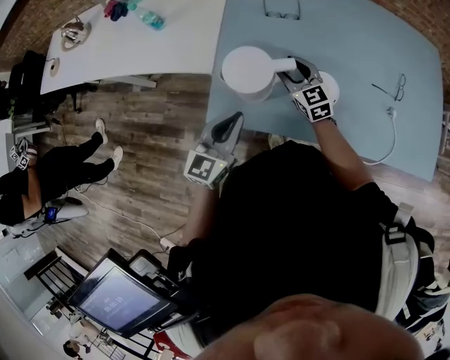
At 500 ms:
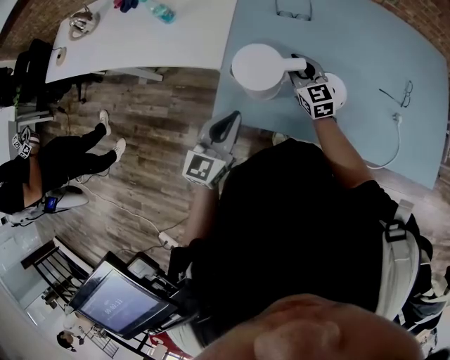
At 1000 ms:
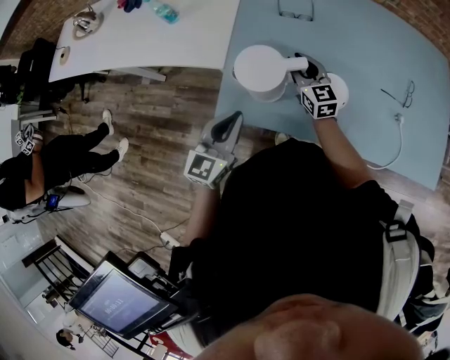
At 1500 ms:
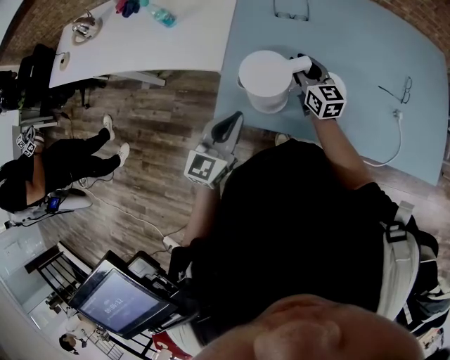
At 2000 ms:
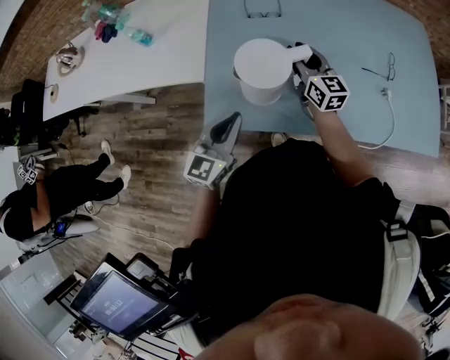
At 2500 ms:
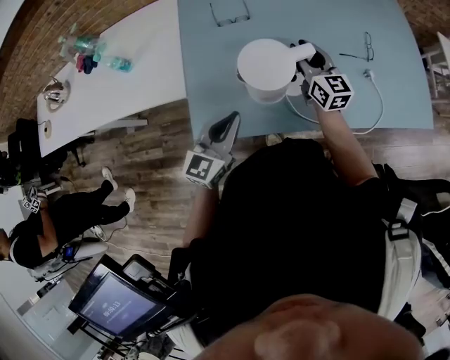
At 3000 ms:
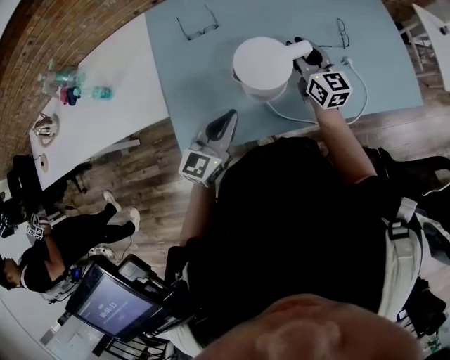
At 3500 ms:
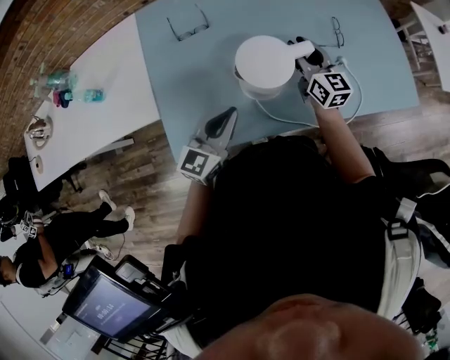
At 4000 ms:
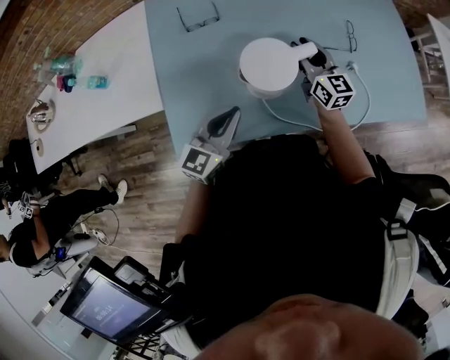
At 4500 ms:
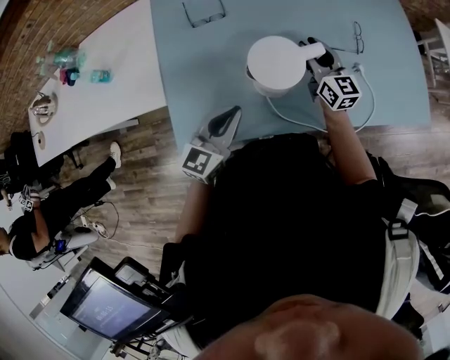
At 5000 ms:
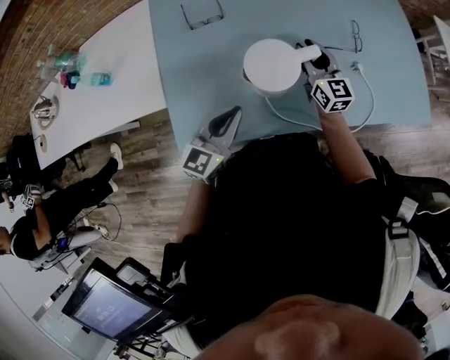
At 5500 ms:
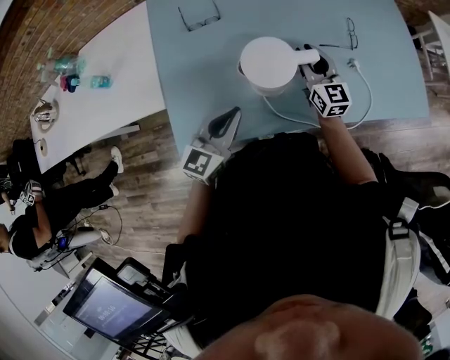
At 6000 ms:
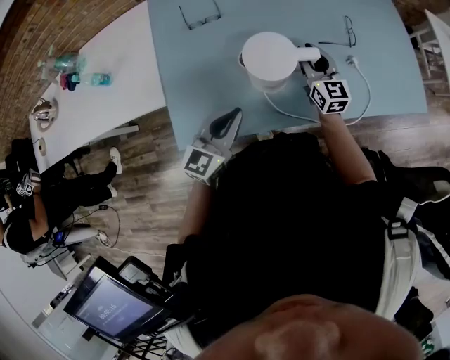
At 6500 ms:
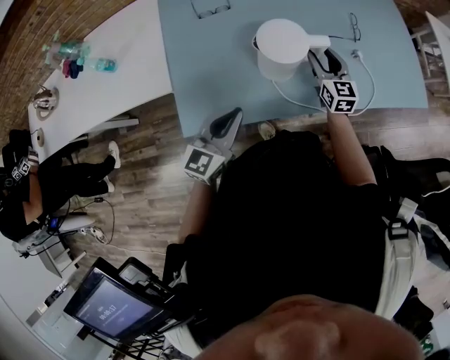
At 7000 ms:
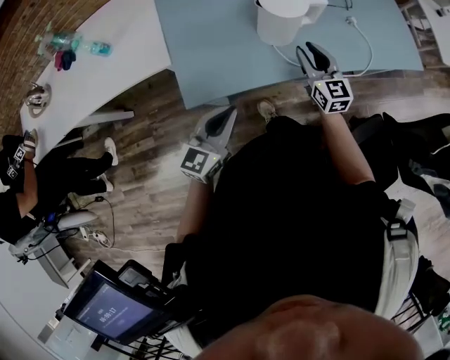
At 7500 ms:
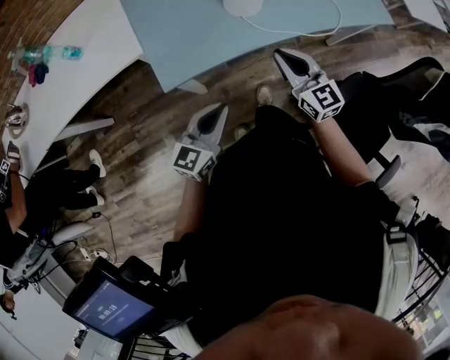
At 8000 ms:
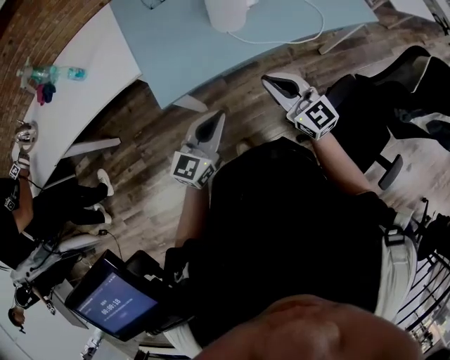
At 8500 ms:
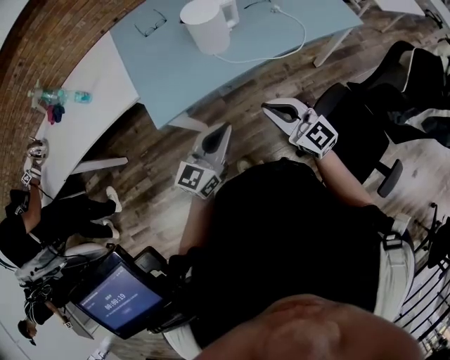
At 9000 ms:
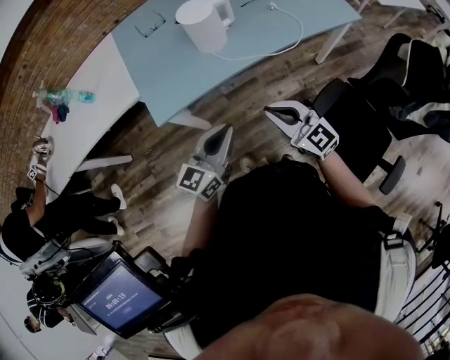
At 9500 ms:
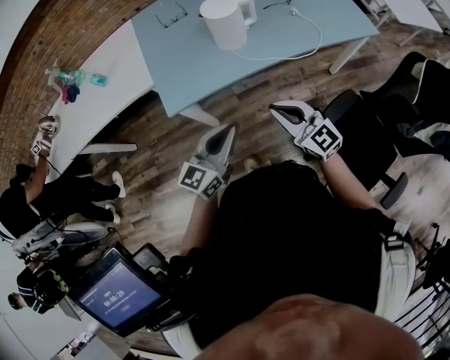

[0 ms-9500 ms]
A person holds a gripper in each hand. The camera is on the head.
0 ms to 2000 ms: The right gripper moves upward and to the right, approximately 10 cm, and swivels some 30 degrees.
2000 ms to 4000 ms: The left gripper travels to the right and forward by some 15 cm, while the right gripper heads to the right, covering about 20 cm.
4000 ms to 5500 ms: The grippers move only a little.
5500 ms to 7500 ms: Both grippers travel together backward, approximately 30 cm. The right gripper closes up.
7500 ms to 9500 ms: The right gripper moves backward, about 15 cm; the left gripper moves to the right and upward, roughly 15 cm.

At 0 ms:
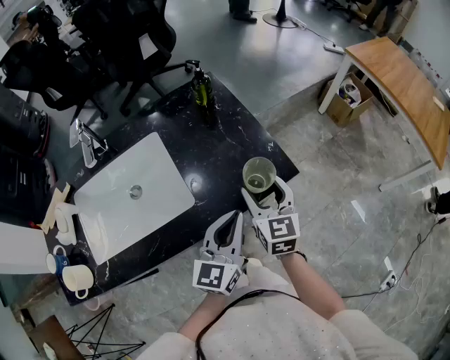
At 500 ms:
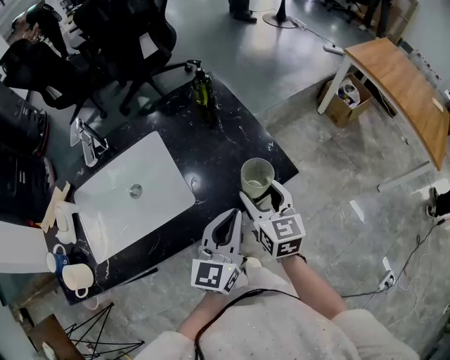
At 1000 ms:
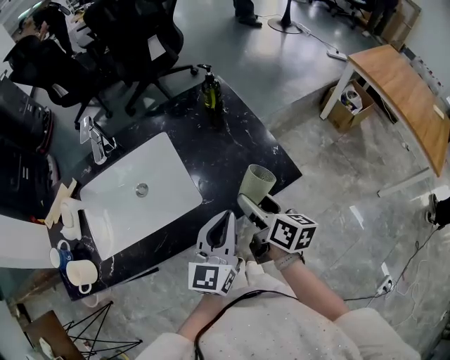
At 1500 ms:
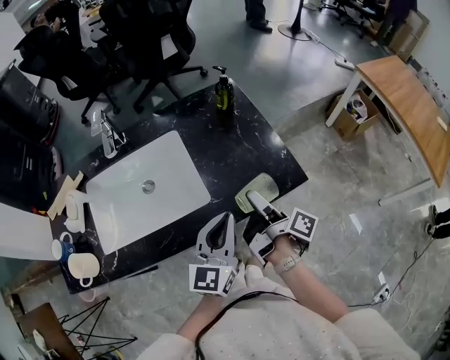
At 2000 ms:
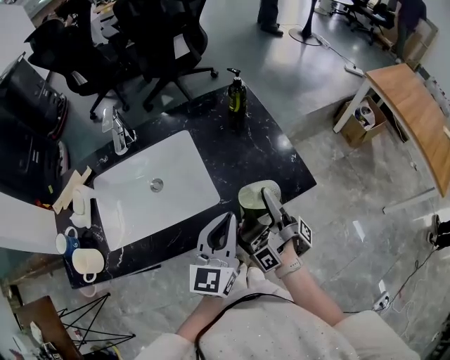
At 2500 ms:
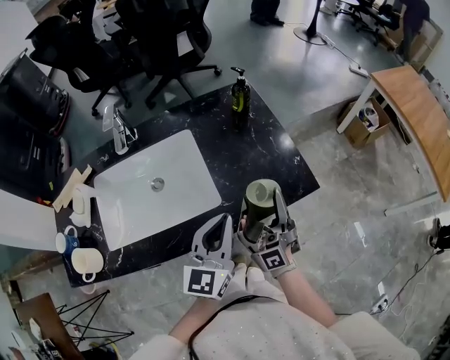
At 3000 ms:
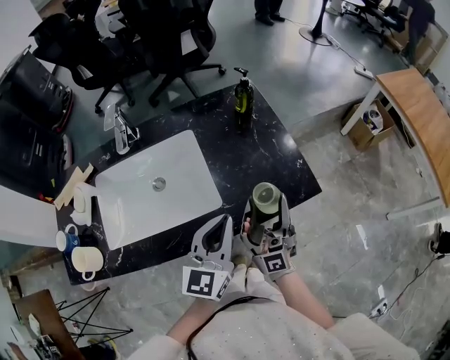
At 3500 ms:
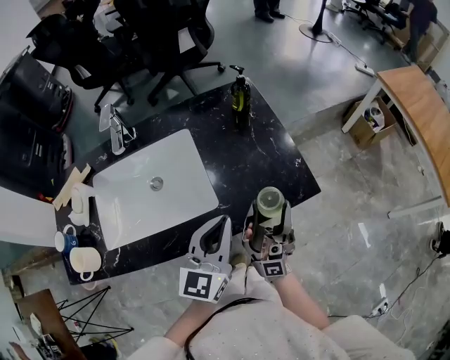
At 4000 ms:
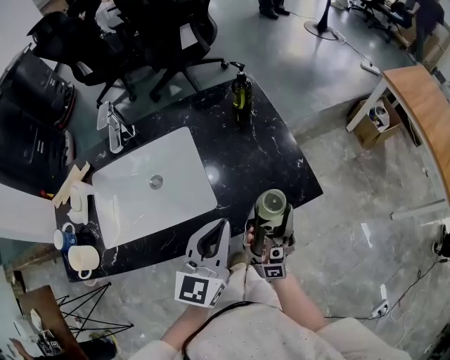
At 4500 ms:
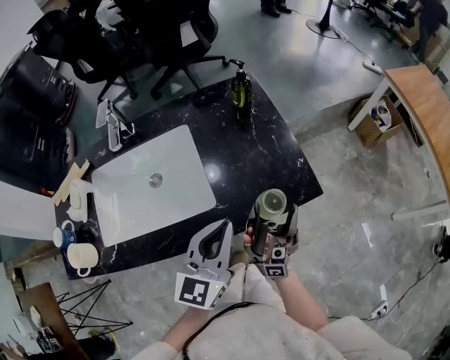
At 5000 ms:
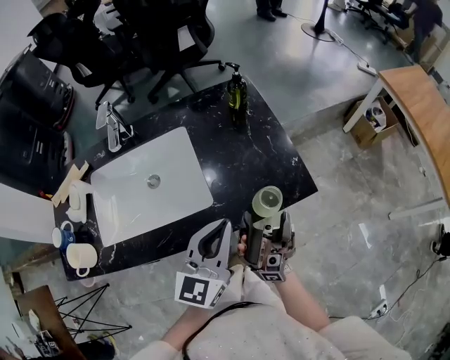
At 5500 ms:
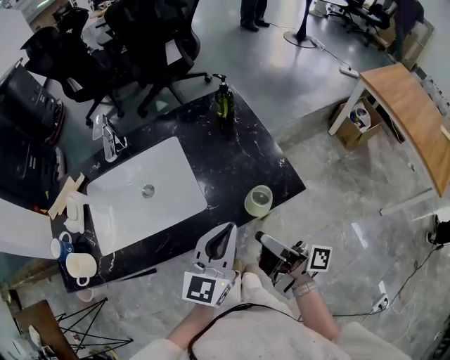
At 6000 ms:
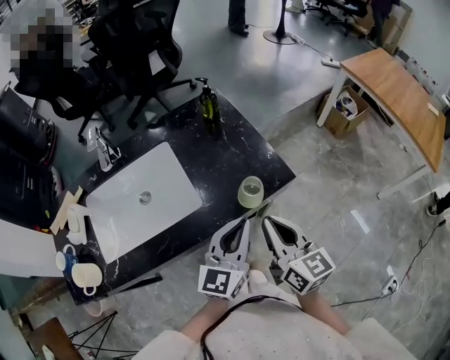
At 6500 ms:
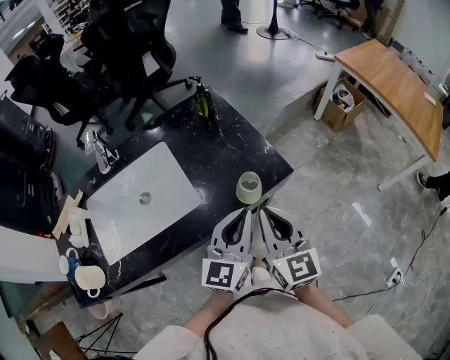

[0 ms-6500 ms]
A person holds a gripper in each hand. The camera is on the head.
0 ms to 2000 ms: The left gripper changes place by roughly 10 cm.
4500 ms to 6500 ms: The left gripper changes place by some 10 cm.

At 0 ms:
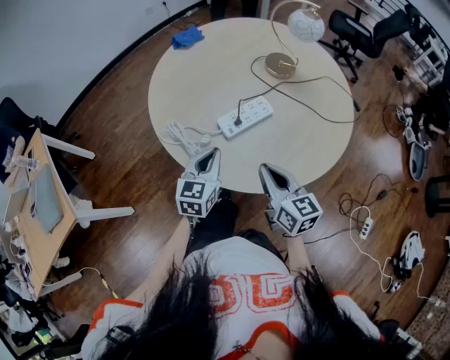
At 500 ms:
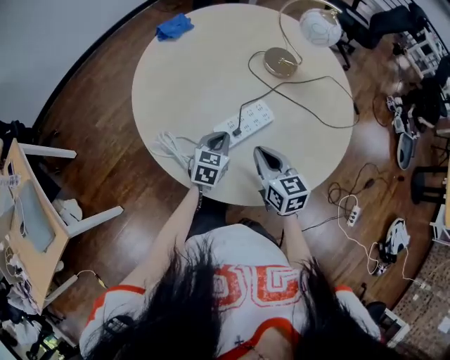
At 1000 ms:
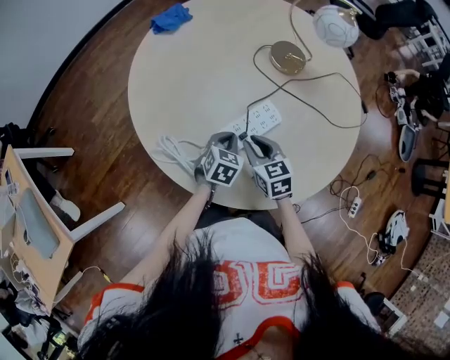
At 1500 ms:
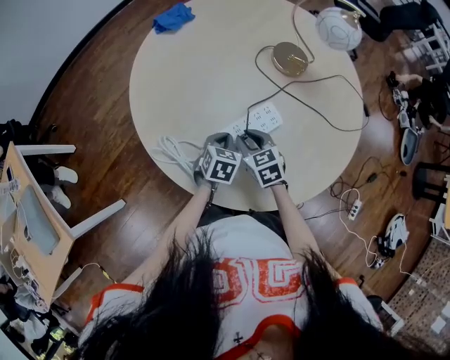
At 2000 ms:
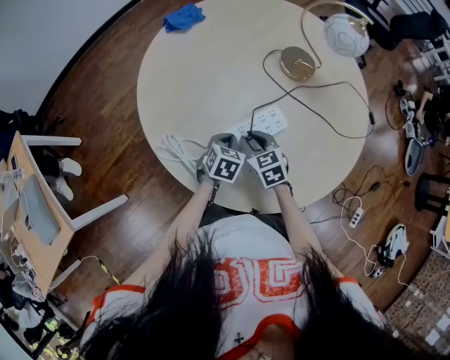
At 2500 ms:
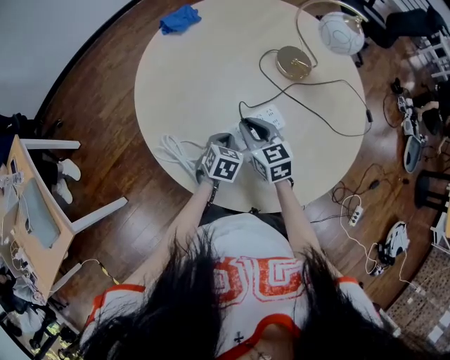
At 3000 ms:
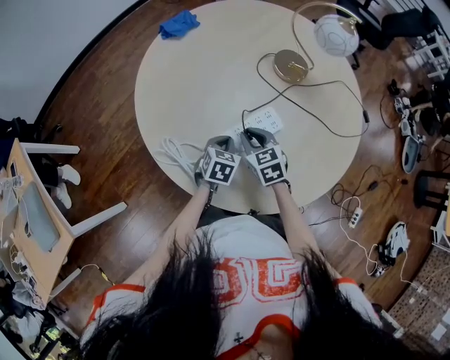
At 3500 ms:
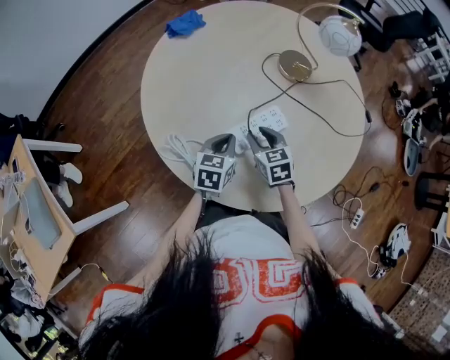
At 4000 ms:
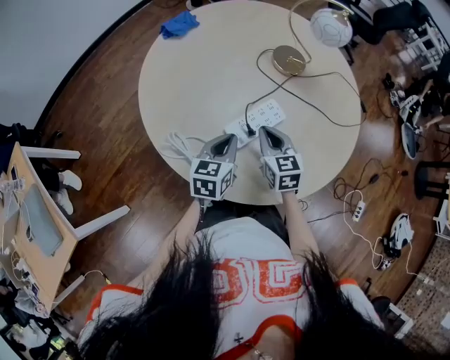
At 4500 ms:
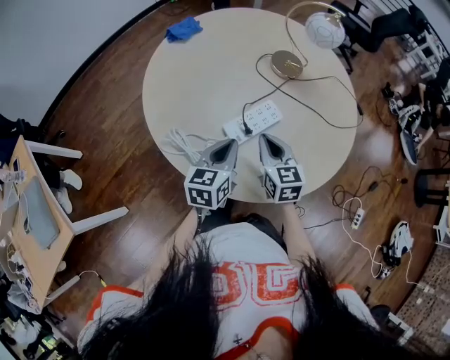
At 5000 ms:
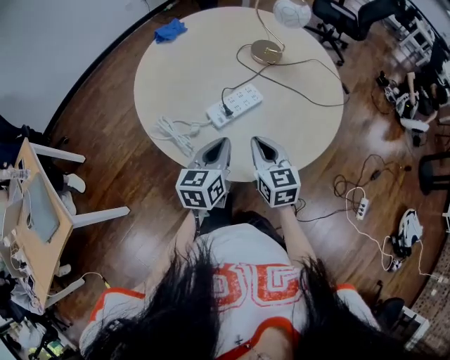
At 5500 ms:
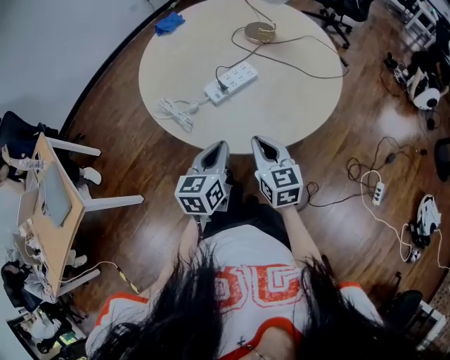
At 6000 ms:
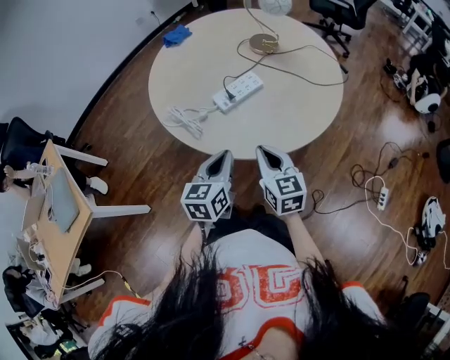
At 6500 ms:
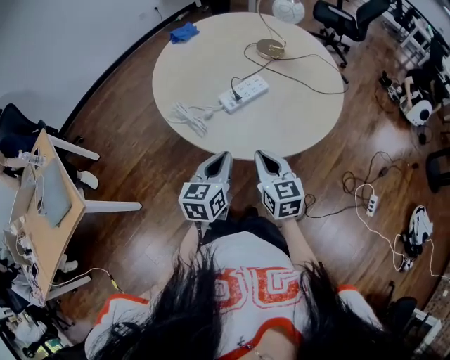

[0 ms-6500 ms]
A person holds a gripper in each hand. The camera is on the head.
0 ms to 2000 ms: The left gripper moves downward and forward, approximately 20 cm, and angles its fingers downward, by some 30 degrees; the right gripper moves forward and downward, about 25 cm, and changes its angle by approximately 30 degrees.
2000 ms to 4500 ms: The right gripper moves up and down over about 10 cm, changing direction 2 times, and rotates some 30 degrees, while the left gripper heads upward and backward, covering some 15 cm, and points its fingers roughly 30 degrees further upward.
4500 ms to 6500 ms: The two grippers go roughly 20 cm backward.

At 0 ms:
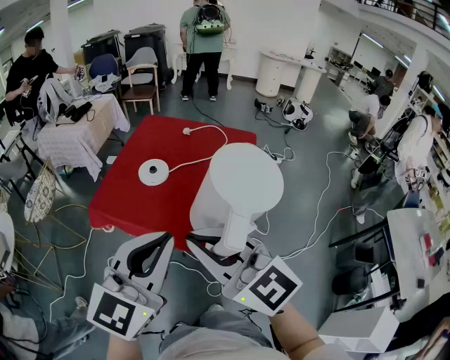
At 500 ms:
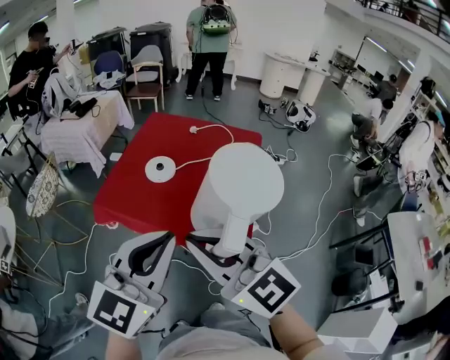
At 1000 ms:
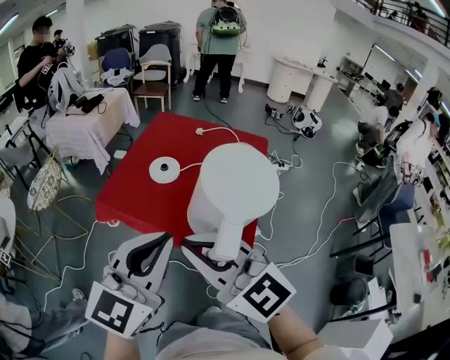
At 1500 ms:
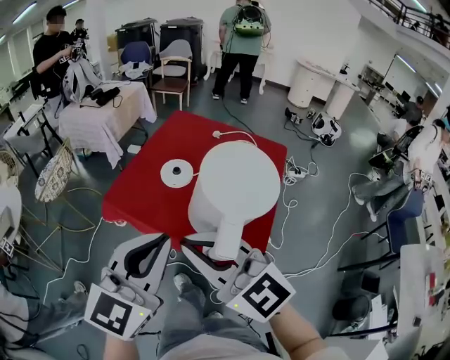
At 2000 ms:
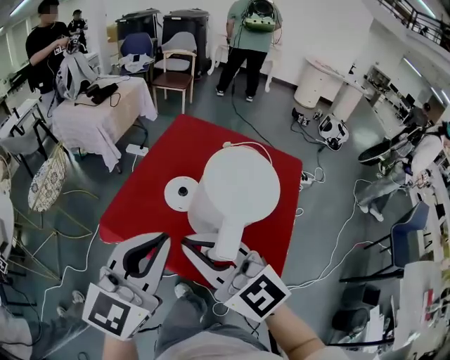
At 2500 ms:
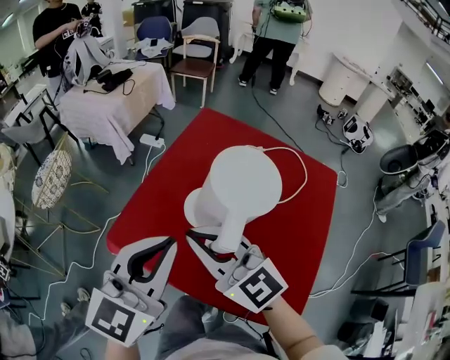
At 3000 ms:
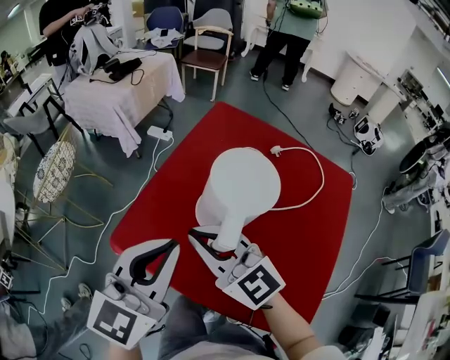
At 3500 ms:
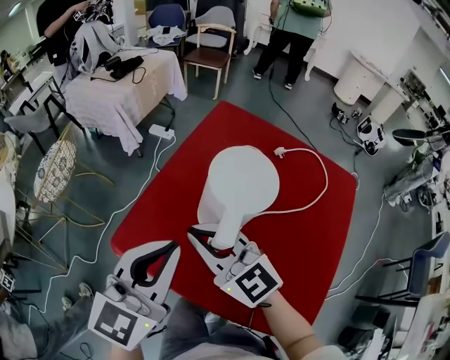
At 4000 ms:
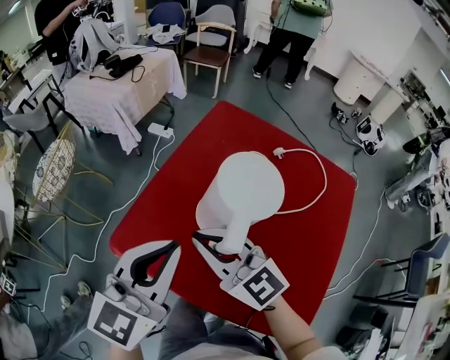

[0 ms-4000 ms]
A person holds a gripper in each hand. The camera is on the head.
0 ms to 2000 ms: Both grippers move forward, roughly 20 cm.
2000 ms to 4000 ms: The two grippers go approximately 20 cm forward and downward.
